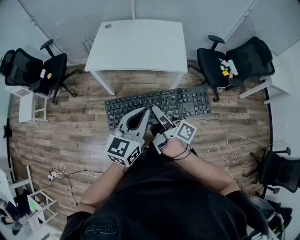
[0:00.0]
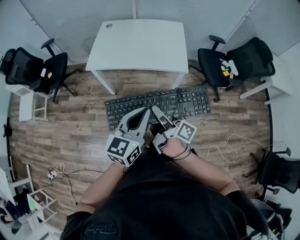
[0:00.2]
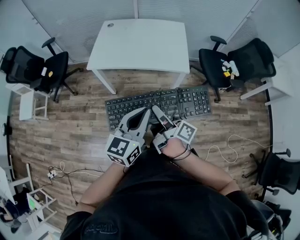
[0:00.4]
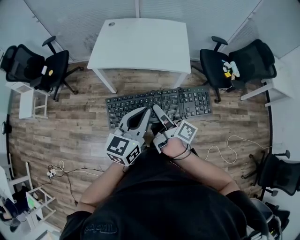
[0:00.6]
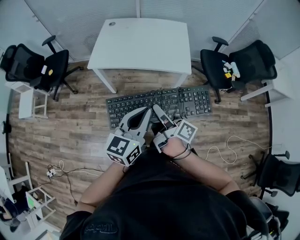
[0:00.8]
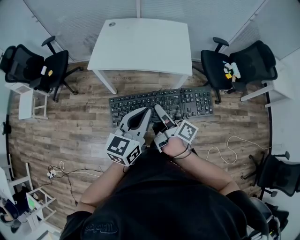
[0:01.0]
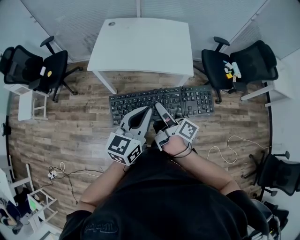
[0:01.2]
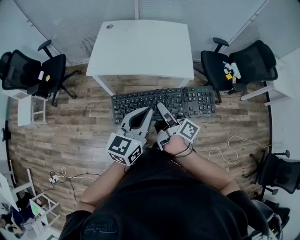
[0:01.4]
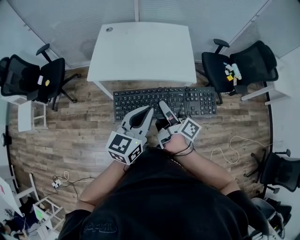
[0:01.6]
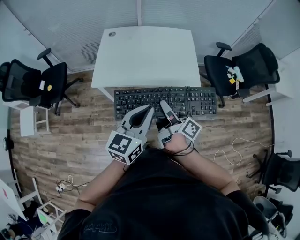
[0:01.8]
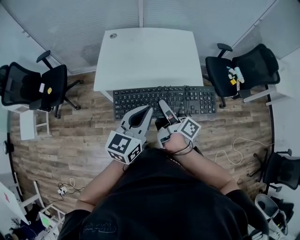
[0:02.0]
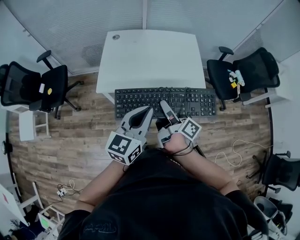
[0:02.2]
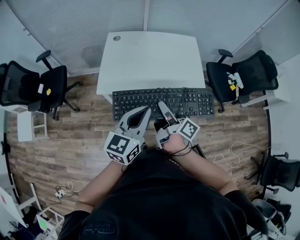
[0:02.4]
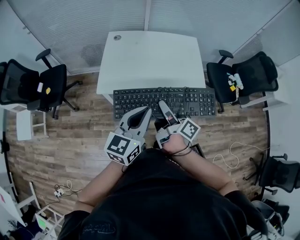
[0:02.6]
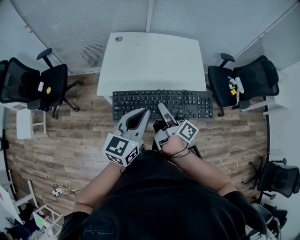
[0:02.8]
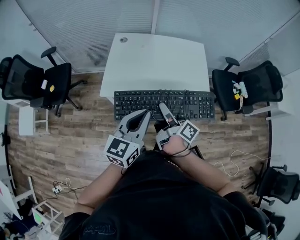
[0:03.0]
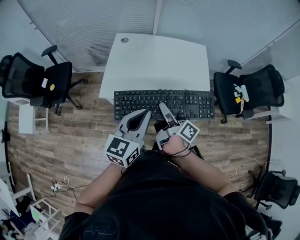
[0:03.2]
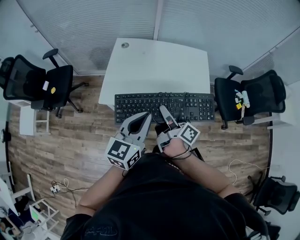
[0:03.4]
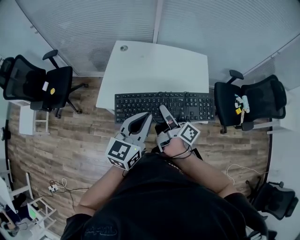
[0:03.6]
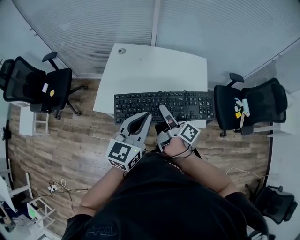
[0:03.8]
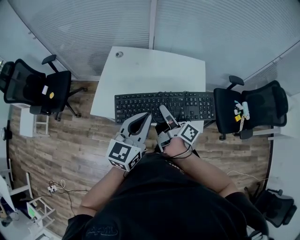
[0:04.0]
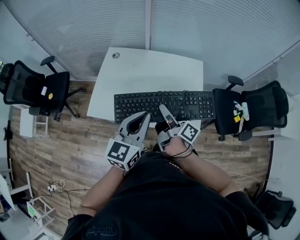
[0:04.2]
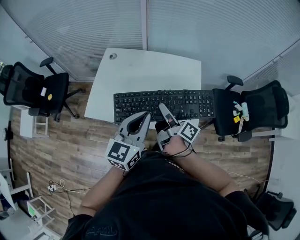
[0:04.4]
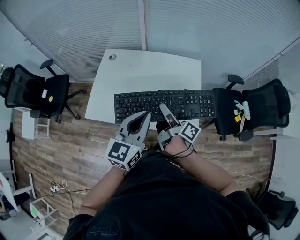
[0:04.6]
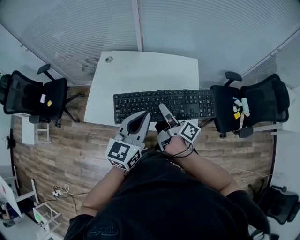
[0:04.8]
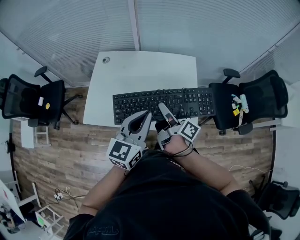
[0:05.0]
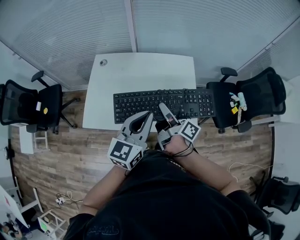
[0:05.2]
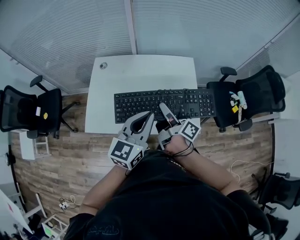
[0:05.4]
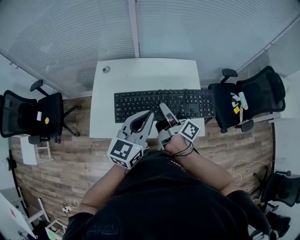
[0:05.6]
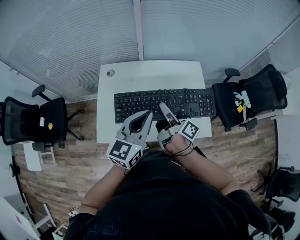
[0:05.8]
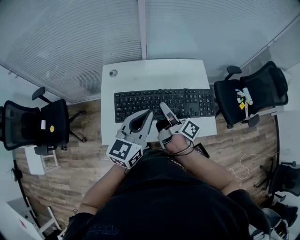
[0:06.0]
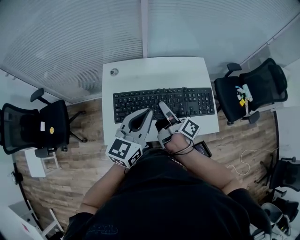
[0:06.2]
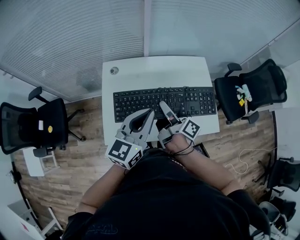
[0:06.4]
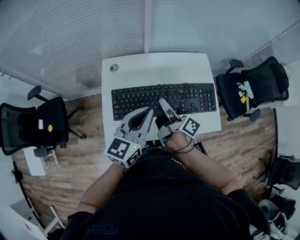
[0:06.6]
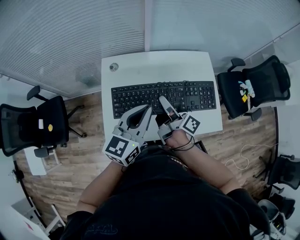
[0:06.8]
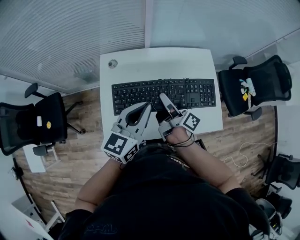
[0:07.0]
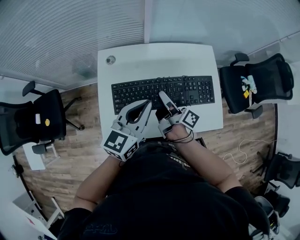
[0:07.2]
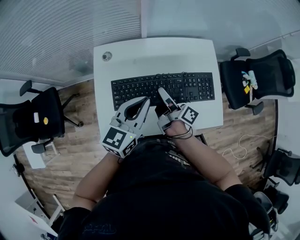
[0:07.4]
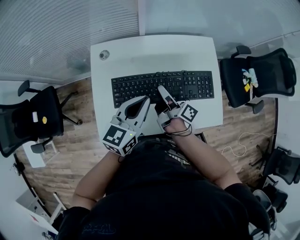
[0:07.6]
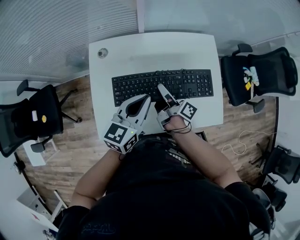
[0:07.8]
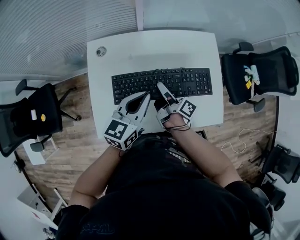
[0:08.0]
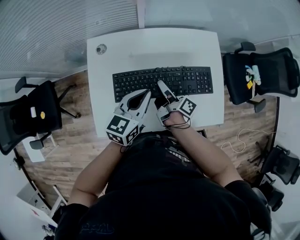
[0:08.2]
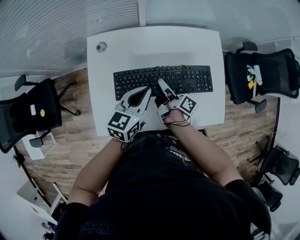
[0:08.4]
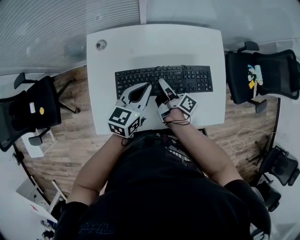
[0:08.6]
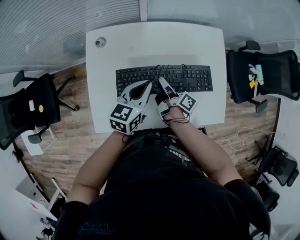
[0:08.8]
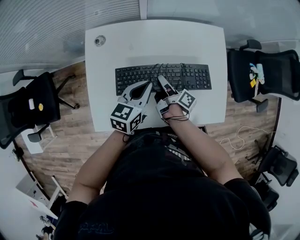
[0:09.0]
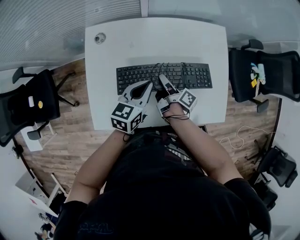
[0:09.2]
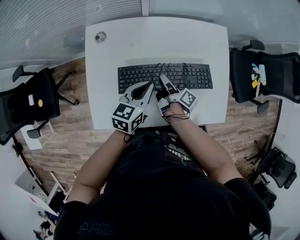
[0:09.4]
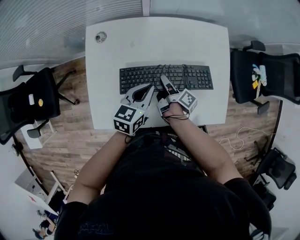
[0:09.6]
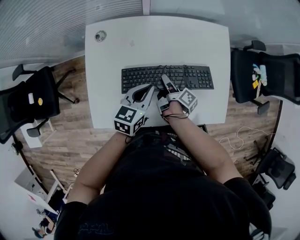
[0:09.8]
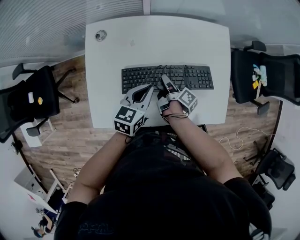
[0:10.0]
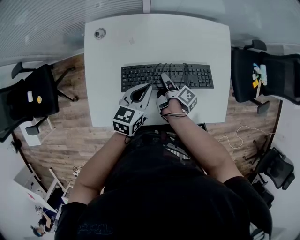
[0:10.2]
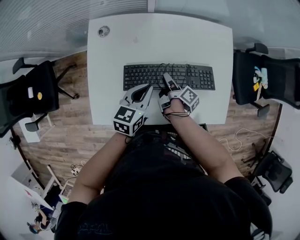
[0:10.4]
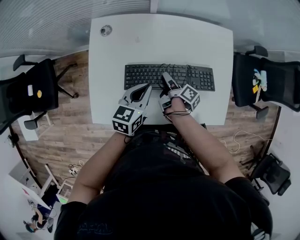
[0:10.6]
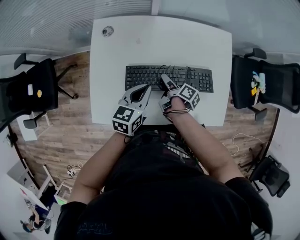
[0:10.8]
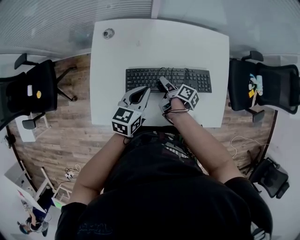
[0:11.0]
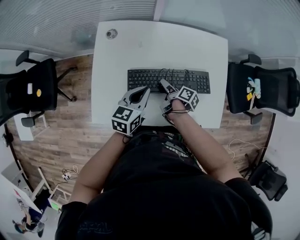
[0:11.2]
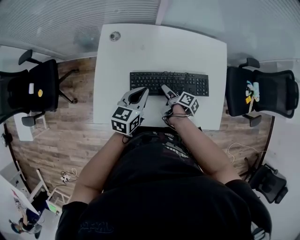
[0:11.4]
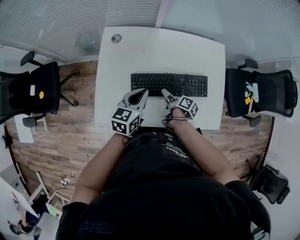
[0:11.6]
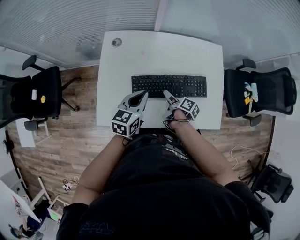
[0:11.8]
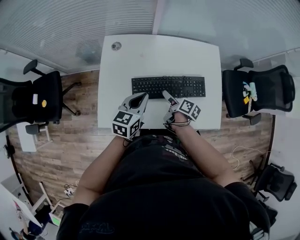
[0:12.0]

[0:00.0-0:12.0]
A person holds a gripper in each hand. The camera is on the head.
0:00.0 to 0:01.6: The left gripper shifts roughly 10 cm forward and to the left. The right gripper is displaced forward by about 10 cm.
0:01.6 to 0:03.0: The left gripper travels to the left and forward by approximately 15 cm; the right gripper heads forward and to the left, covering some 15 cm.
0:03.0 to 0:04.4: The grippers both shift forward and to the right by roughly 20 cm.
0:04.4 to 0:06.0: Both grippers move to the left and forward, about 15 cm.
0:06.0 to 0:07.6: The two grippers go about 15 cm downward and forward.
0:07.6 to 0:09.0: The two grippers go about 10 cm downward.
0:09.0 to 0:10.4: The grippers make only small movements.
0:10.4 to 0:12.0: The right gripper travels backward and upward by some 10 cm, swivels about 20 degrees, and opens its fingers. The left gripper moves upward, some 5 cm.

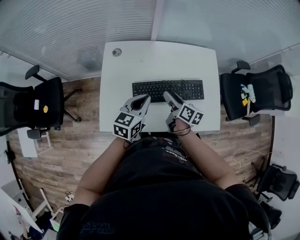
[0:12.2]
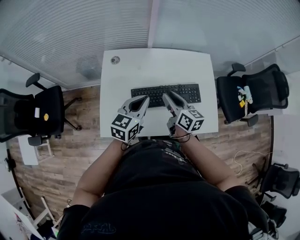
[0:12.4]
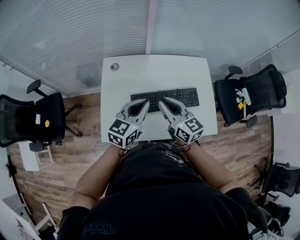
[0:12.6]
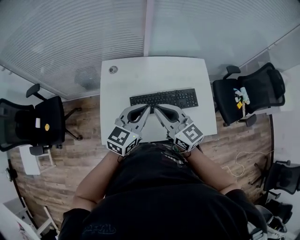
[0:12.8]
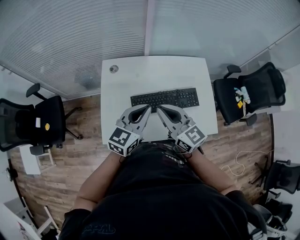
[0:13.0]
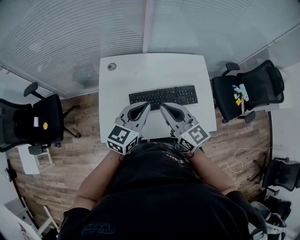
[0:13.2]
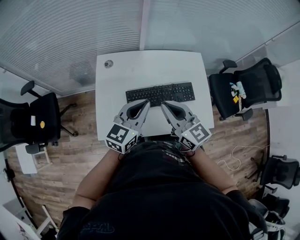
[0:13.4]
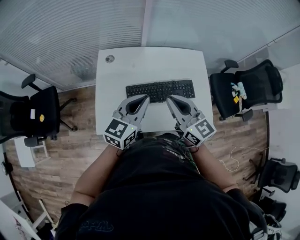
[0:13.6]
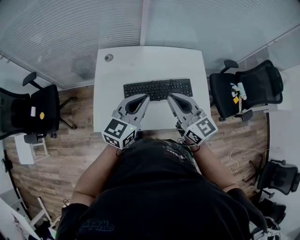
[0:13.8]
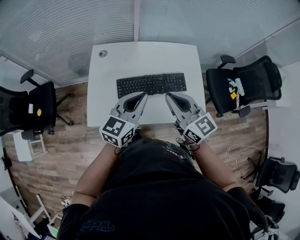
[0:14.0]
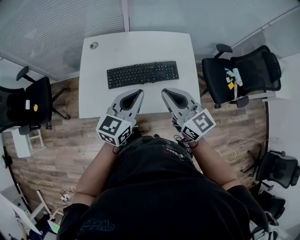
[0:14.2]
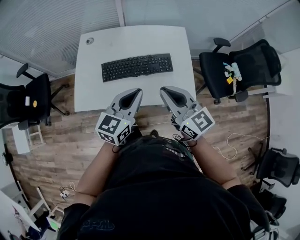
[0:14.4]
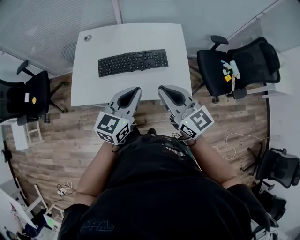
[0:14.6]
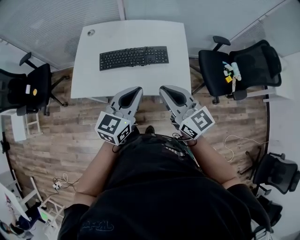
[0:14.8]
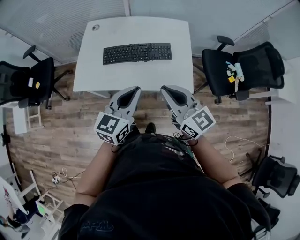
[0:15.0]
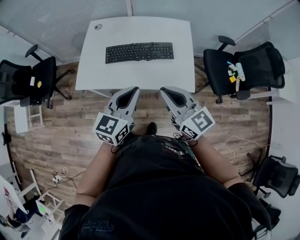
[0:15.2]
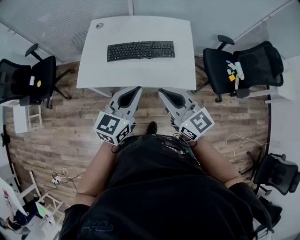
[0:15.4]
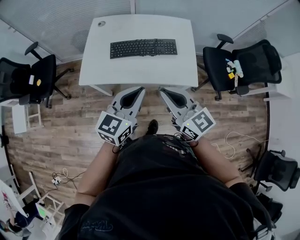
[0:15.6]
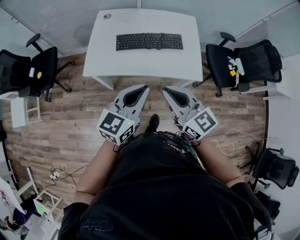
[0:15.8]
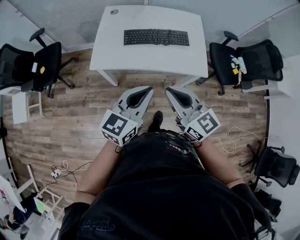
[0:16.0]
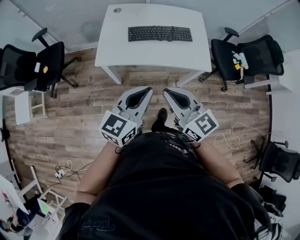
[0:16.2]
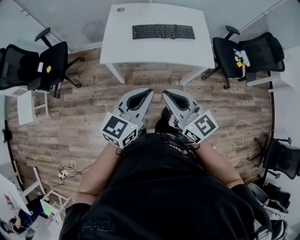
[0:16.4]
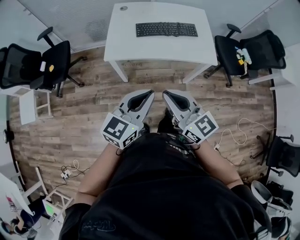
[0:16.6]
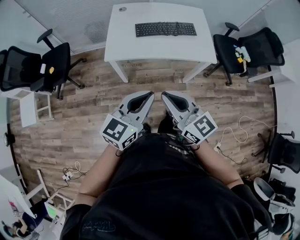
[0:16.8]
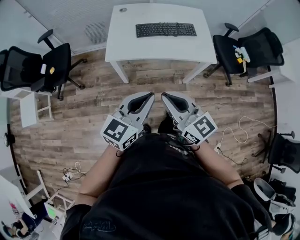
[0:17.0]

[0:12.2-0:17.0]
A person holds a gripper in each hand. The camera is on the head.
0:12.2 to 0:13.8: The left gripper moves upward, roughly 10 cm, while the right gripper travels upward by some 20 cm, rolls counterclockwise, seen from behind, by about 50 degrees, and closes its fingers.
0:13.8 to 0:15.4: Both grippers travel together backward and to the right, approximately 25 cm.
0:15.4 to 0:17.0: The two grippers go roughly 25 cm backward and to the left.

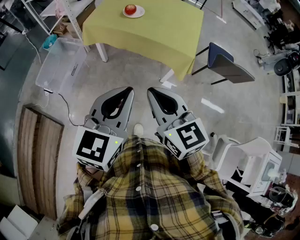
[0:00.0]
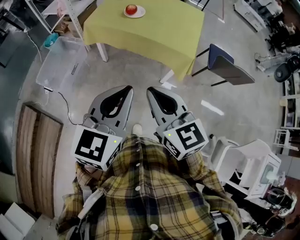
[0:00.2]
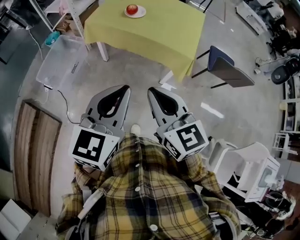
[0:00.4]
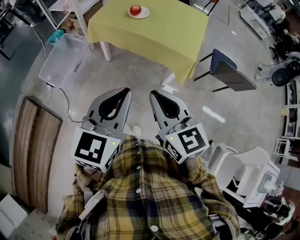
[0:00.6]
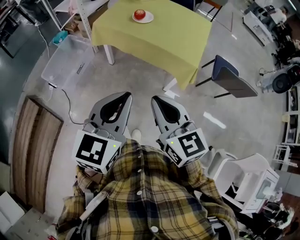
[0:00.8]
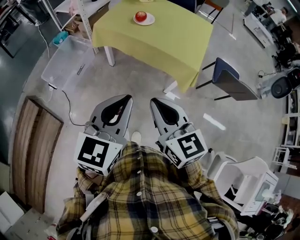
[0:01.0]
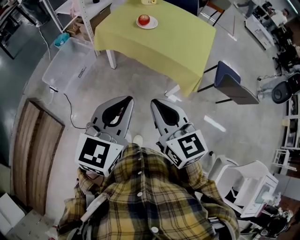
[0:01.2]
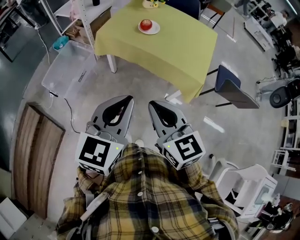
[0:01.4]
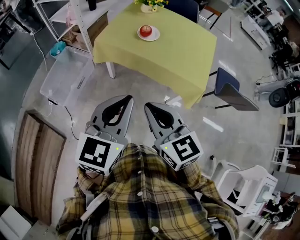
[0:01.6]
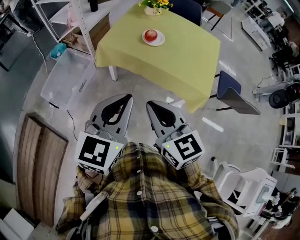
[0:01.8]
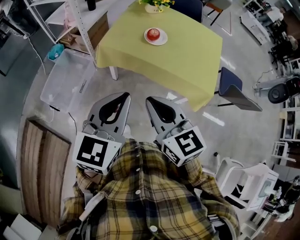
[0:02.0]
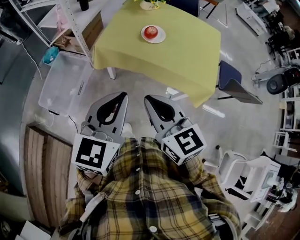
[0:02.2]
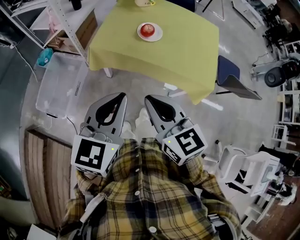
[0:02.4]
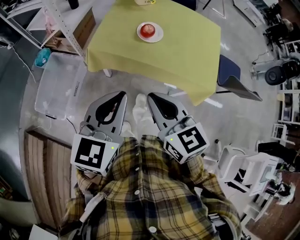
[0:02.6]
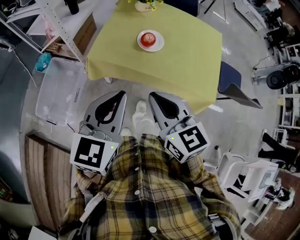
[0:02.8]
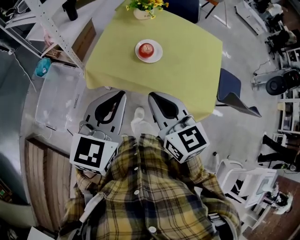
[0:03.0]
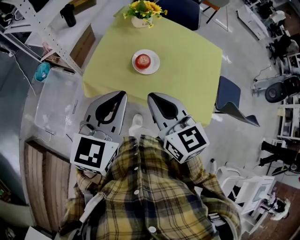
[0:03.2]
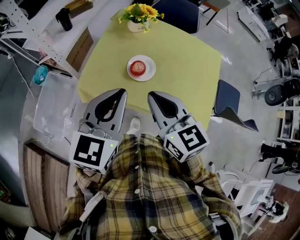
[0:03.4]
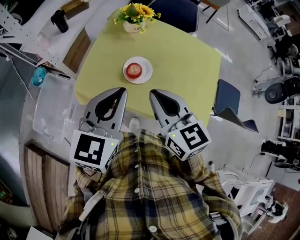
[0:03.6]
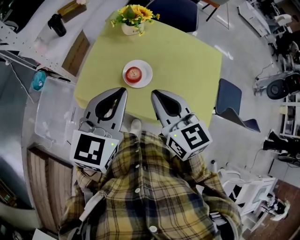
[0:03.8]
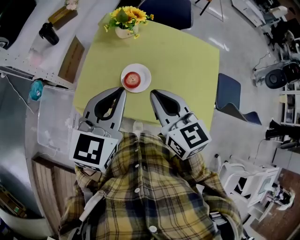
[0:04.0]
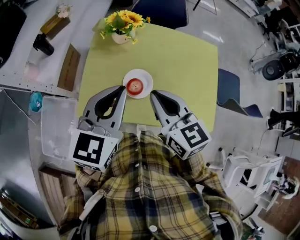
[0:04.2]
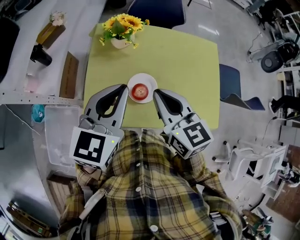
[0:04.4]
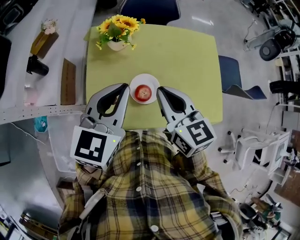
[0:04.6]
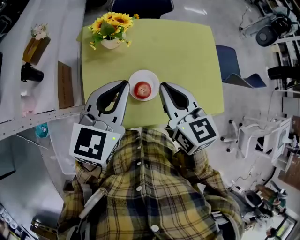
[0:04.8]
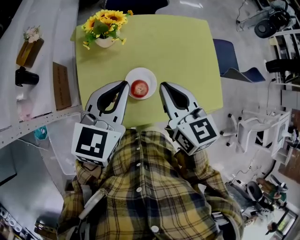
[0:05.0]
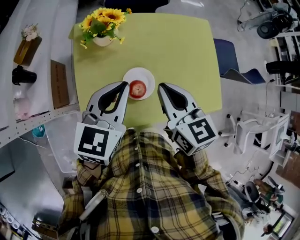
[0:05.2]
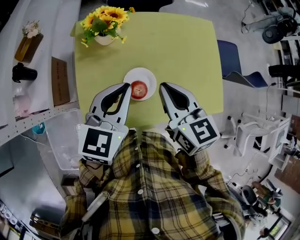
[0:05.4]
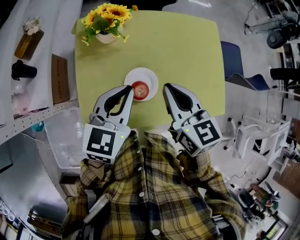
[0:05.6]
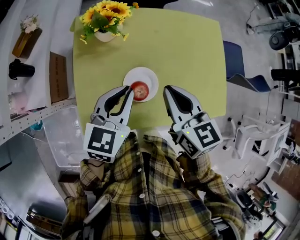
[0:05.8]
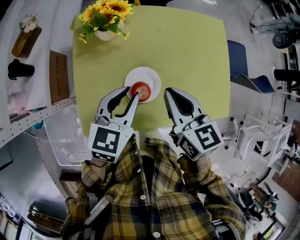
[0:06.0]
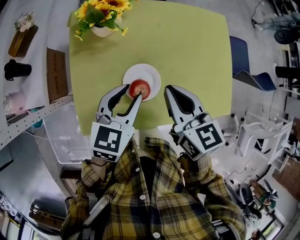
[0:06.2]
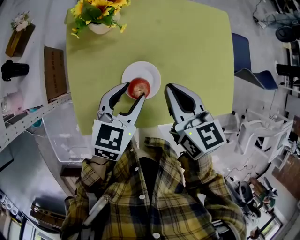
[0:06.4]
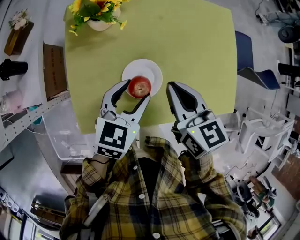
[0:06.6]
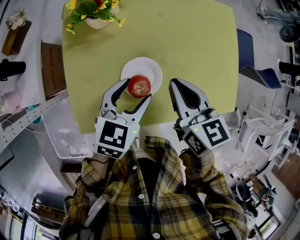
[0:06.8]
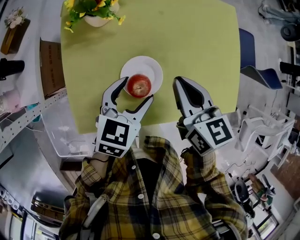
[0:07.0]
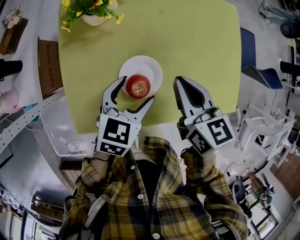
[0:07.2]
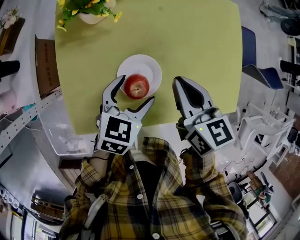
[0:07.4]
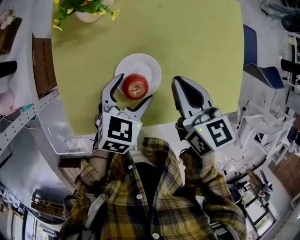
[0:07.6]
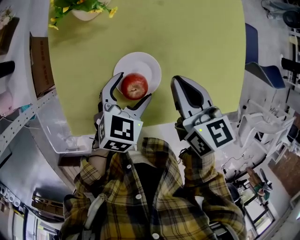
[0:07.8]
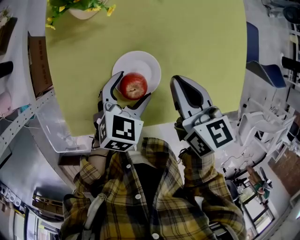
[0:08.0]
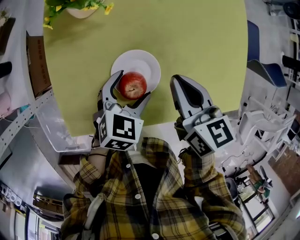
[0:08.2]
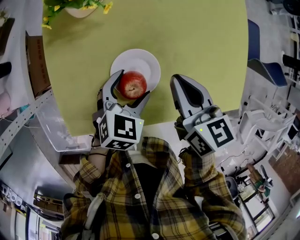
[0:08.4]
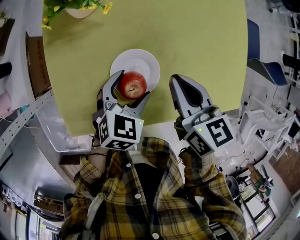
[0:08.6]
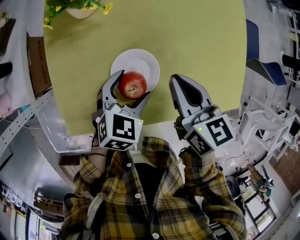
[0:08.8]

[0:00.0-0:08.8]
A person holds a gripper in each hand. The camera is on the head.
0:00.0 to 0:01.4: The grippers both shift forward by approximately 5 cm.
0:01.4 to 0:03.0: The grippers both shift forward by some 30 cm.
0:03.0 to 0:04.4: The two grippers go about 25 cm forward.
0:04.4 to 0:05.8: The left gripper heads downward, covering about 15 cm; the right gripper heads downward, covering roughly 5 cm.
0:05.8 to 0:07.4: The right gripper is displaced downward by some 10 cm; the left gripper moves downward, approximately 15 cm, and opens up.
0:07.4 to 0:08.8: The grippers stay close to where they were, moving slightly.
